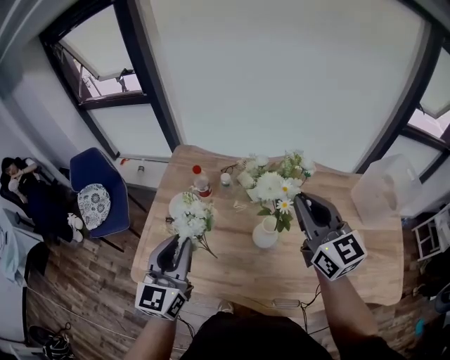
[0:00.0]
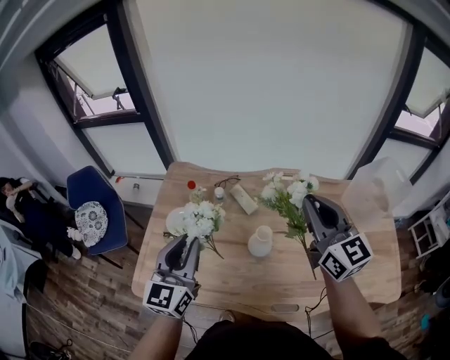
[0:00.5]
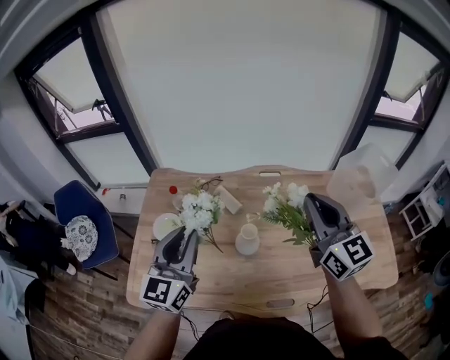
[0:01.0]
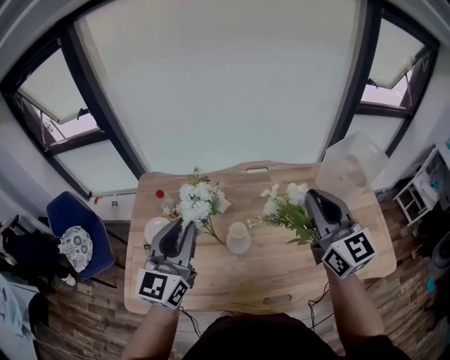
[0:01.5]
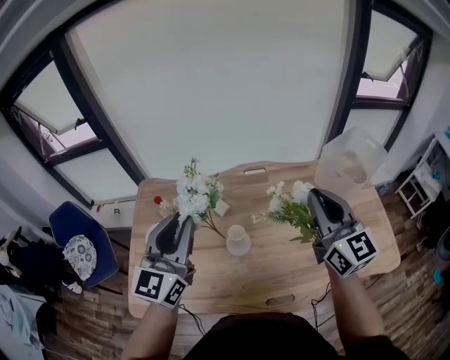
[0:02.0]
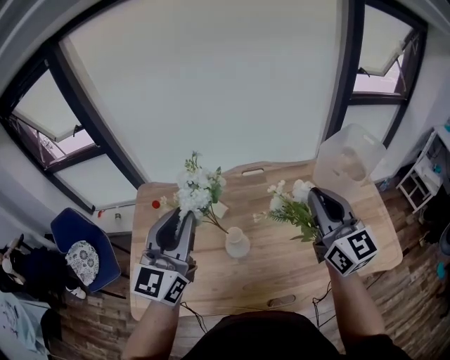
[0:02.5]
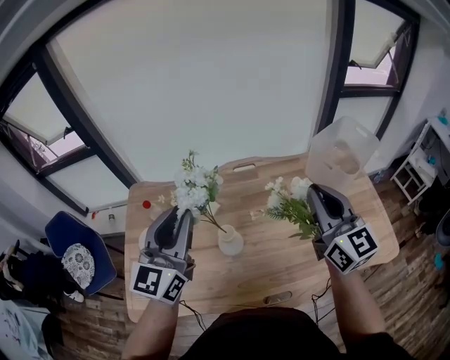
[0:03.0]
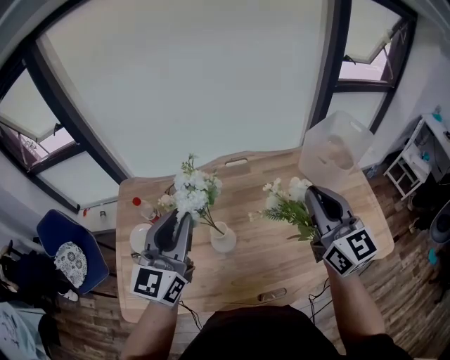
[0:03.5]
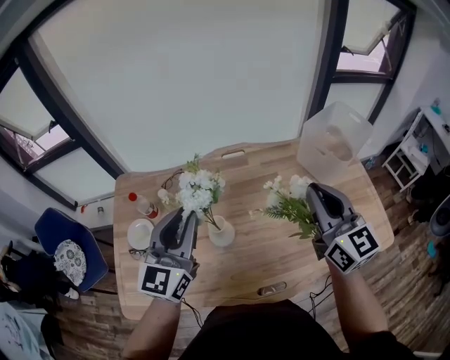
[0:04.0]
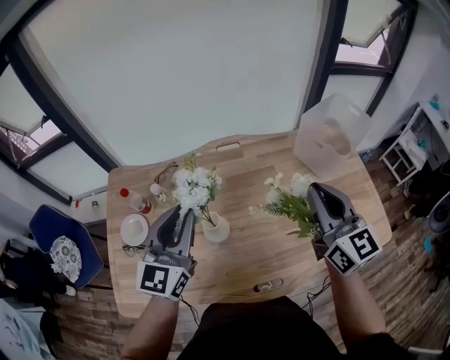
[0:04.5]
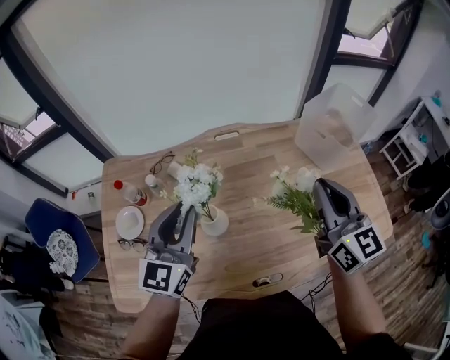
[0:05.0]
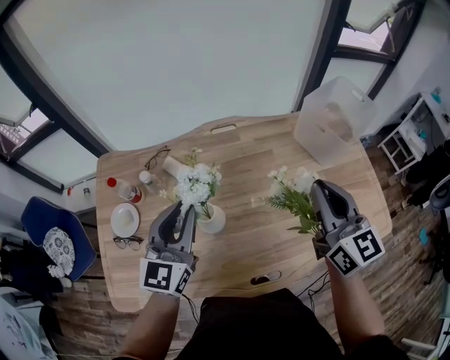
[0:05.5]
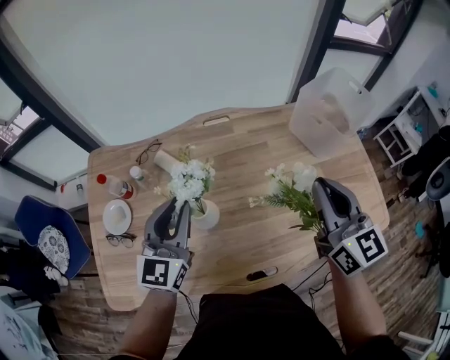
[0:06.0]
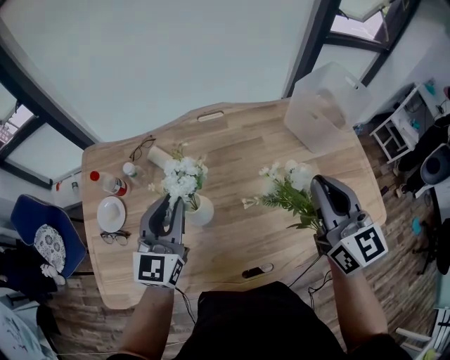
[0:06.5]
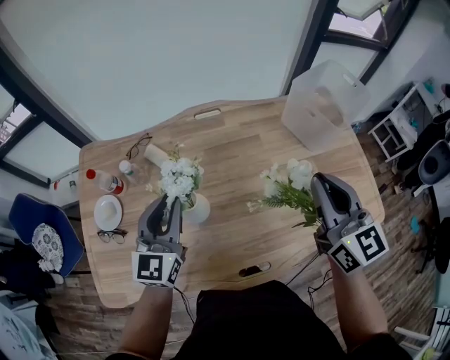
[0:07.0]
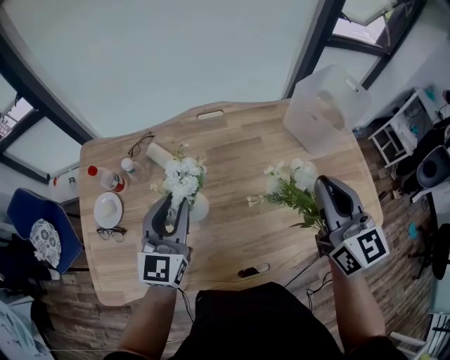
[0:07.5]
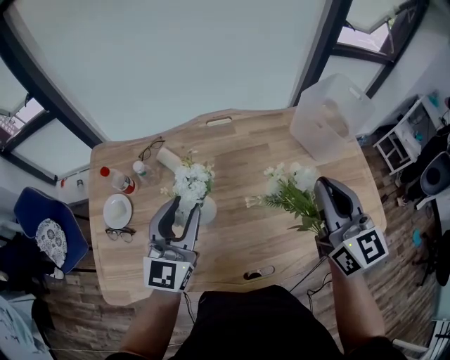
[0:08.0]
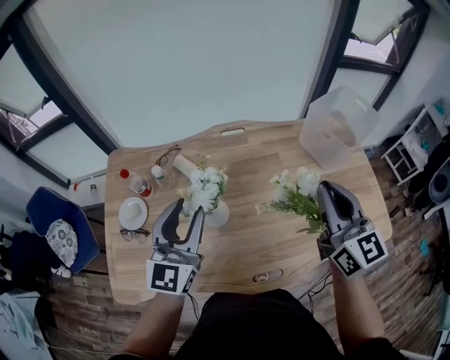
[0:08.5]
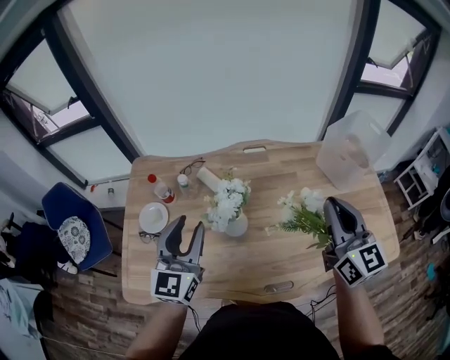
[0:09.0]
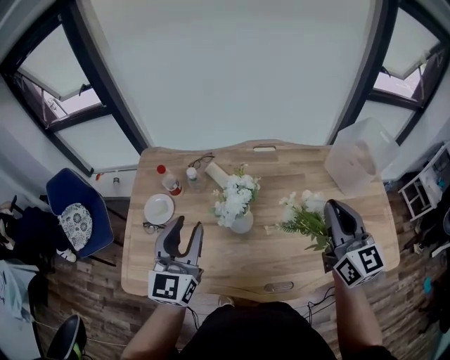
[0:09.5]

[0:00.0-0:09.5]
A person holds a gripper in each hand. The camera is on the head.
0:00.0 to 0:02.0: The right gripper goes roughly 15 cm to the right. Meanwhile the left gripper is displaced to the right, upward and forward by about 15 cm, and swivels about 20 degrees.
0:02.0 to 0:04.0: The right gripper shifts by roughly 5 cm; the left gripper is displaced to the right and downward by roughly 10 cm.
0:04.0 to 0:05.5: The right gripper goes about 5 cm downward, while the left gripper shifts approximately 10 cm downward.
0:05.5 to 0:07.5: The grippers stay close to where they were, moving slightly.
0:07.5 to 0:09.5: The right gripper heads to the left, covering some 5 cm; the left gripper travels to the left, backward and upward by about 15 cm.

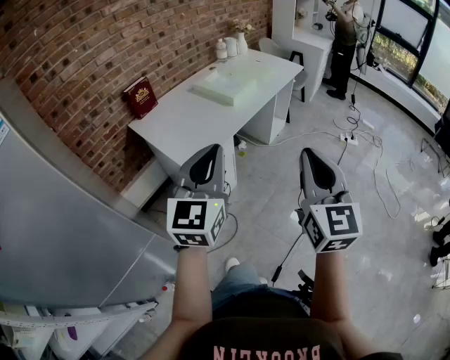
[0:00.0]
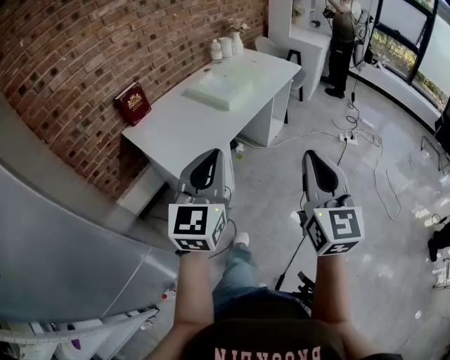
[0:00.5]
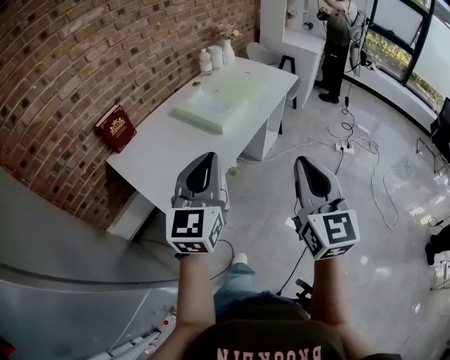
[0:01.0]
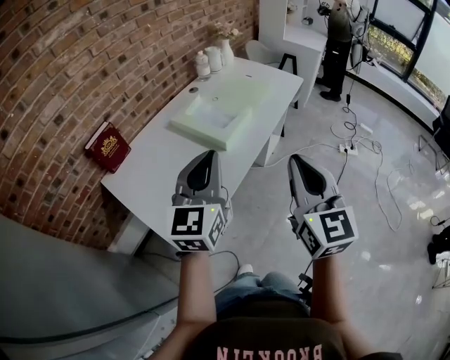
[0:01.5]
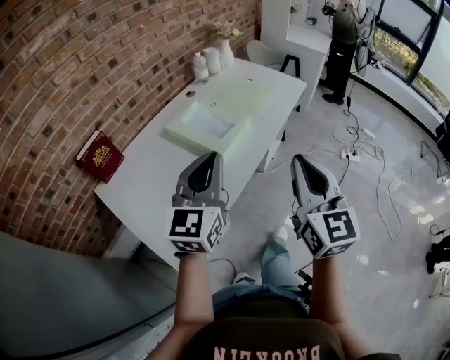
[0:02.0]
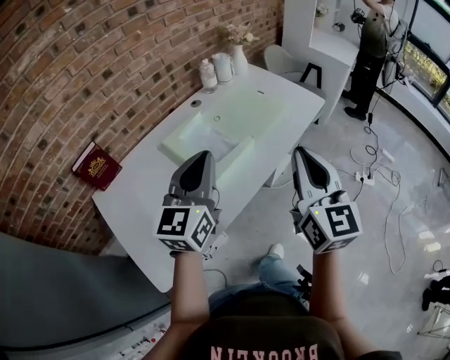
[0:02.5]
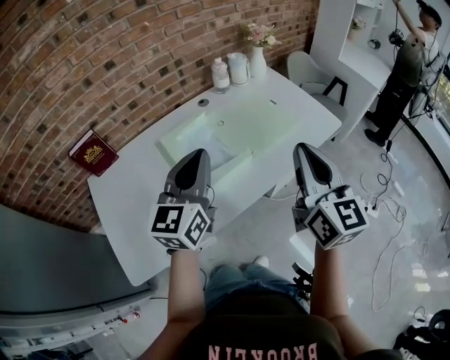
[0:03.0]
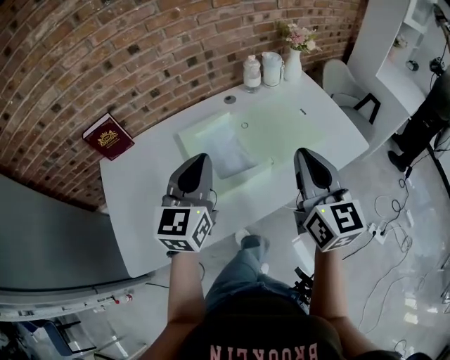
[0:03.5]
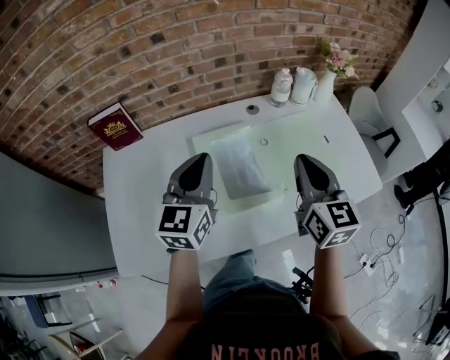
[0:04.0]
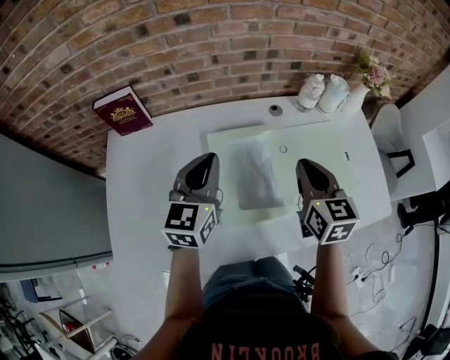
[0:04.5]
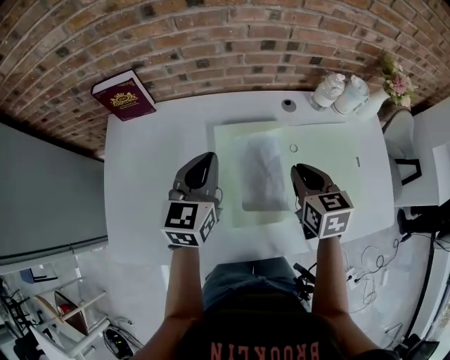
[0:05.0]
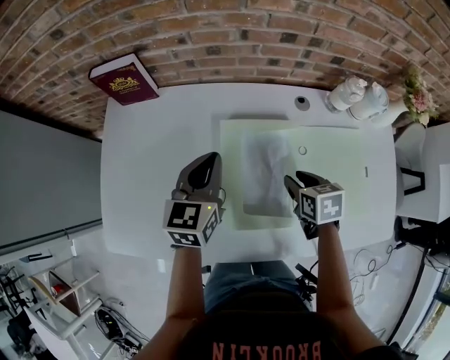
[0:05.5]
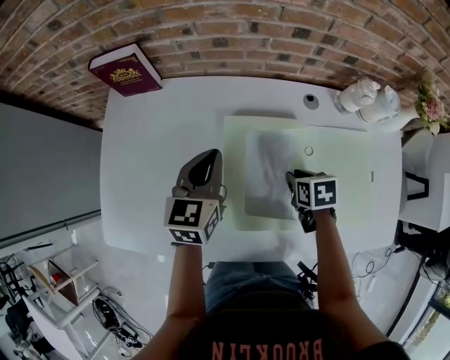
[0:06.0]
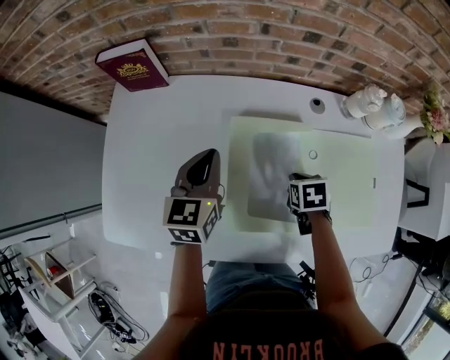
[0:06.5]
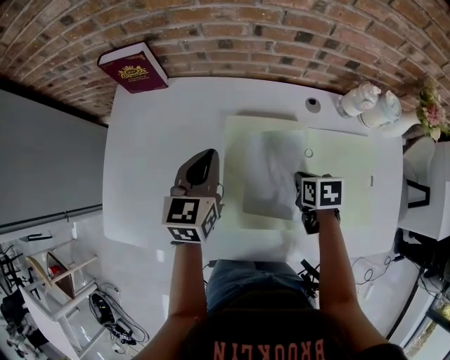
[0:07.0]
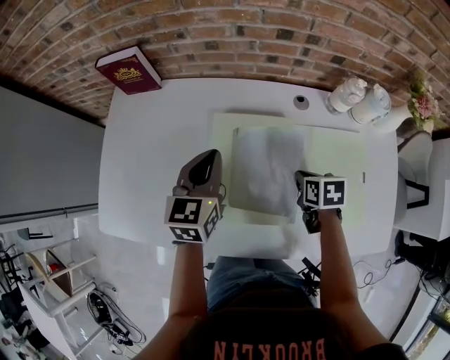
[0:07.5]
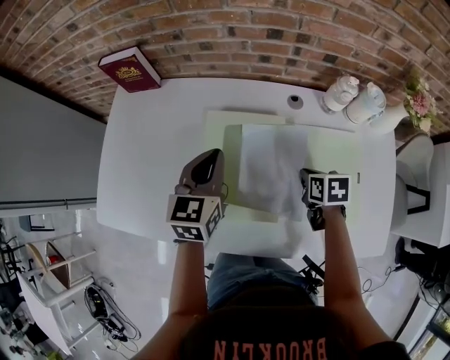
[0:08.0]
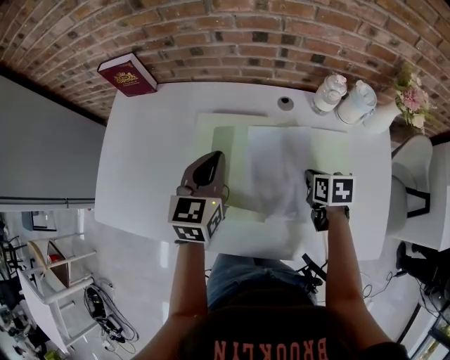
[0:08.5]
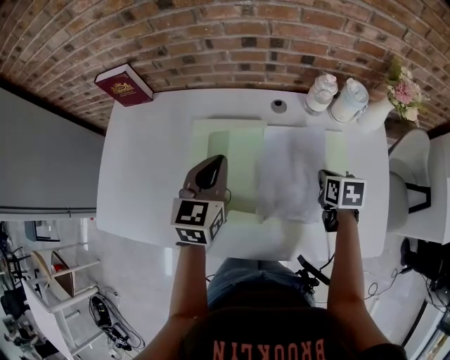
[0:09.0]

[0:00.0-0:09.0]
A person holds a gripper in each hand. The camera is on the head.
0:00.0 to 0:02.0: The two grippers go roughly 40 cm forward.
0:02.0 to 0:04.5: The left gripper shifts by approximately 35 cm, and turns by about 50 degrees. Meanwhile the right gripper changes place by some 50 cm, and swivels approximately 50 degrees.
0:04.5 to 0:07.0: The right gripper moves downward, about 20 cm, angles its fingers downward, by approximately 40 degrees, and opens, then closes again. The left gripper shifts some 10 cm downward, and turns by roughly 20 degrees.
0:07.0 to 0:09.0: The right gripper moves to the right, roughly 20 cm; the left gripper is displaced to the right and backward by about 15 cm.

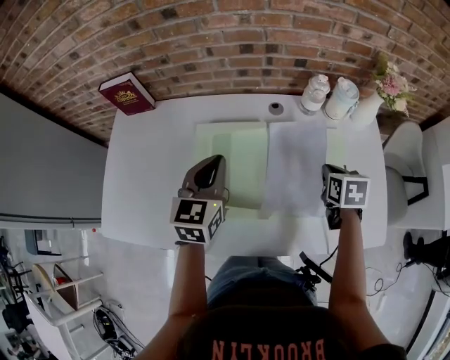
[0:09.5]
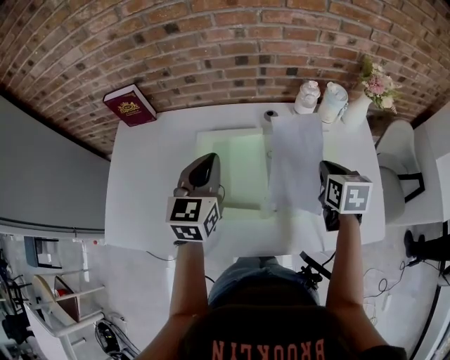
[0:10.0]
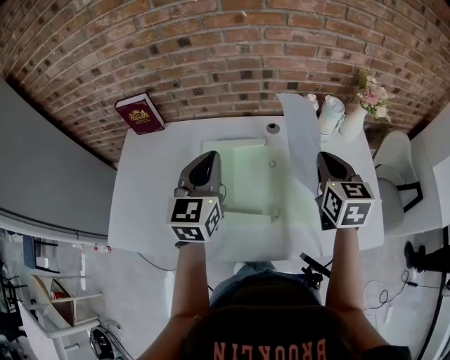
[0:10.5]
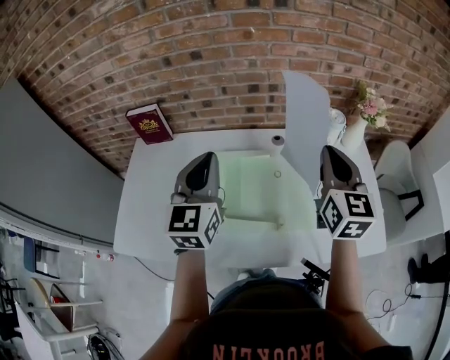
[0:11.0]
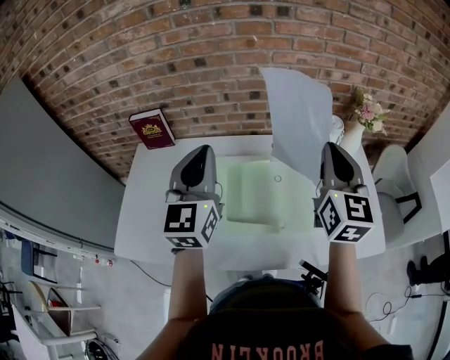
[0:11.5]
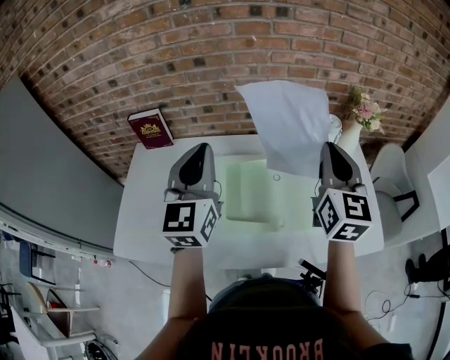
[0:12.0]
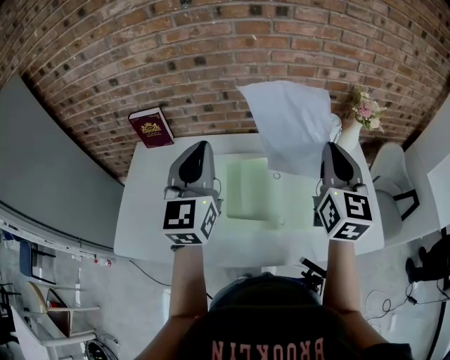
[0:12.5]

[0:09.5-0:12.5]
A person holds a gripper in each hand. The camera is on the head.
0:09.5 to 0:11.0: The left gripper moves upward, roughly 15 cm; the right gripper goes roughly 25 cm upward, and points its fingers about 50 degrees further upward.
0:11.0 to 0:12.5: The left gripper moves upward, some 5 cm.

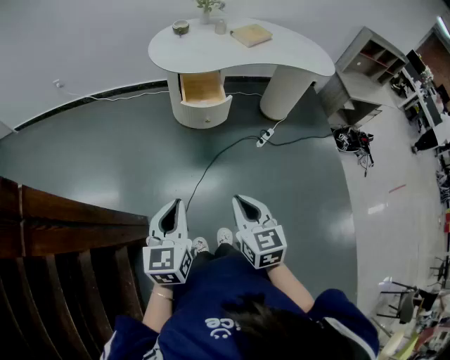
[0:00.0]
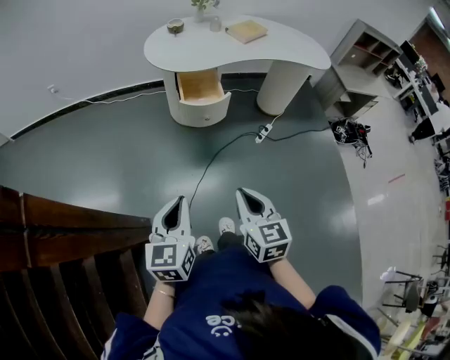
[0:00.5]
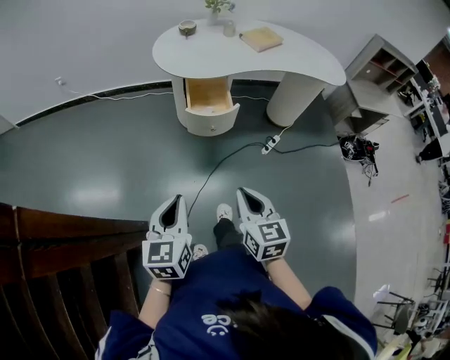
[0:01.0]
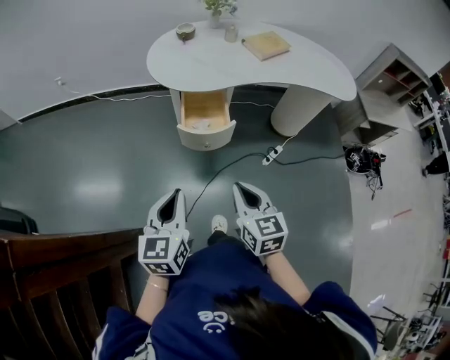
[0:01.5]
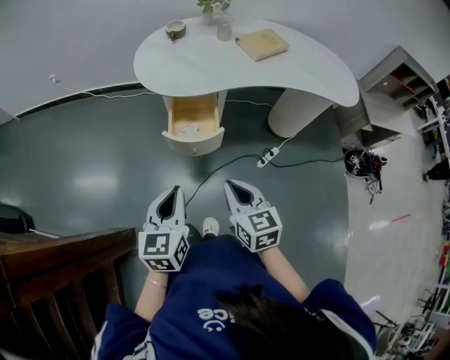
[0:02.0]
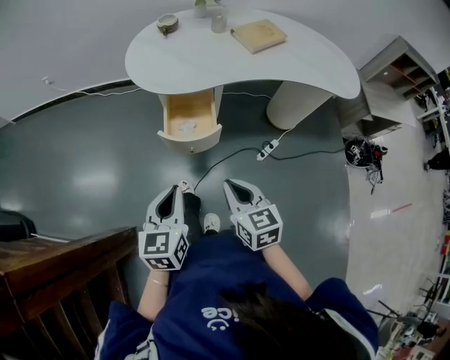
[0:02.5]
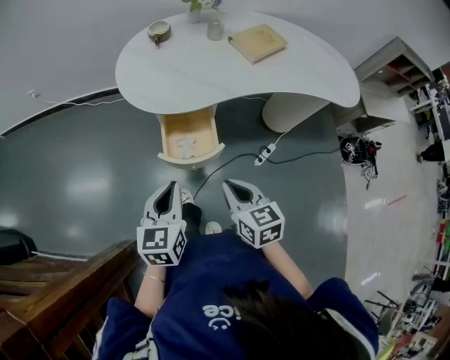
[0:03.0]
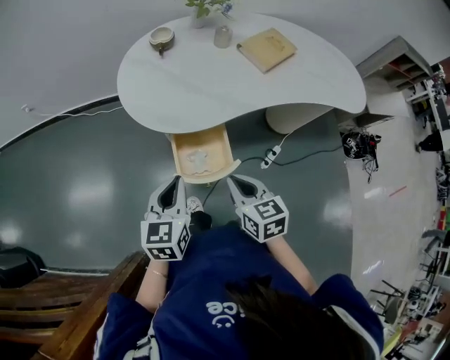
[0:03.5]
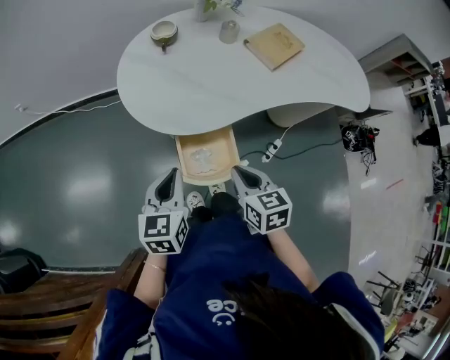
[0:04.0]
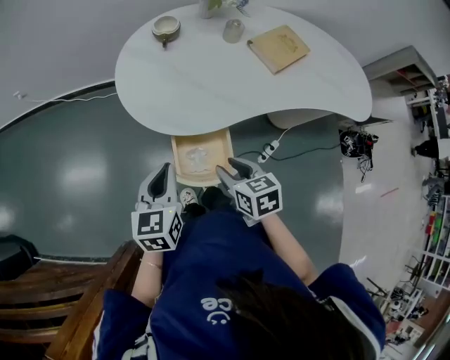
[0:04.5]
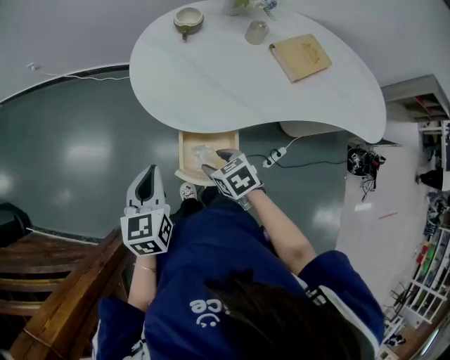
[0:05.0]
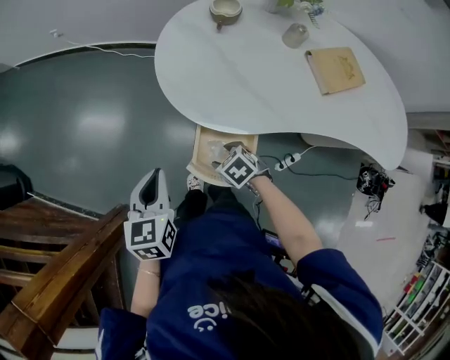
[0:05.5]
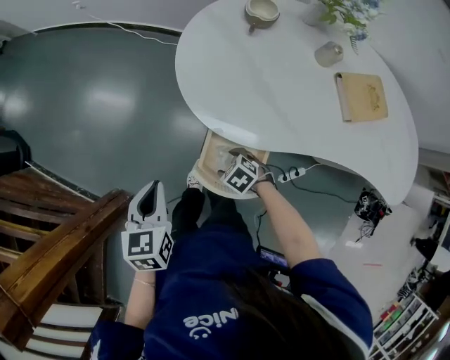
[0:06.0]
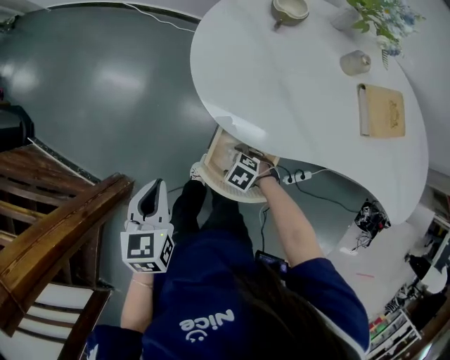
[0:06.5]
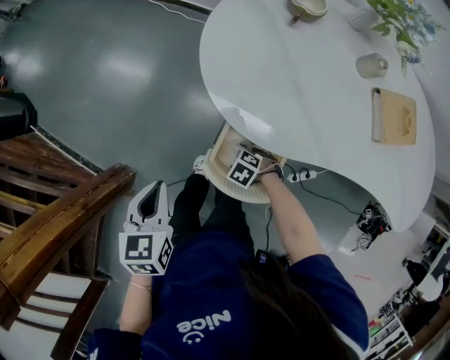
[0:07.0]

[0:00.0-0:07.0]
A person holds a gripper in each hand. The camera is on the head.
0:00.0 to 0:02.0: The left gripper shifts approximately 30 cm forward and to the right, while the right gripper is displaced forward by roughly 25 cm.
0:02.0 to 0:03.5: Both grippers move forward, approximately 20 cm.
0:03.5 to 0:05.0: The right gripper changes place by about 15 cm, changes its angle by about 40 degrees, and opens its fingers. Meanwhile the left gripper ends up roughly 10 cm from where it was.
0:05.0 to 0:07.0: The left gripper shifts by some 10 cm, and swivels about 30 degrees. The right gripper moves downward, approximately 20 cm, and rotates around the line of its fingers by approximately 50 degrees, counterclockwise from behind.
